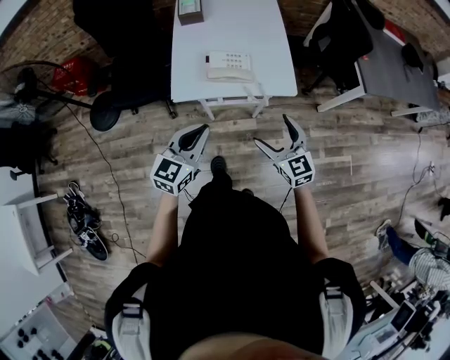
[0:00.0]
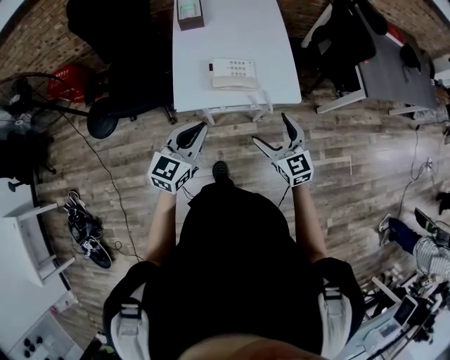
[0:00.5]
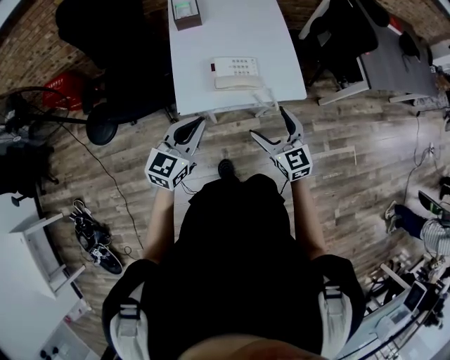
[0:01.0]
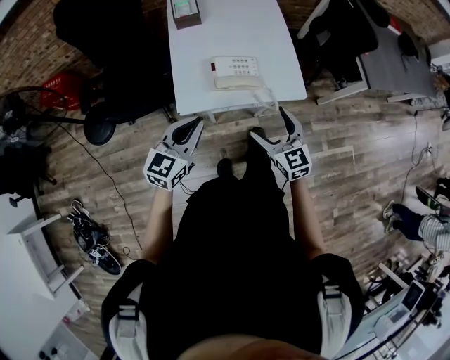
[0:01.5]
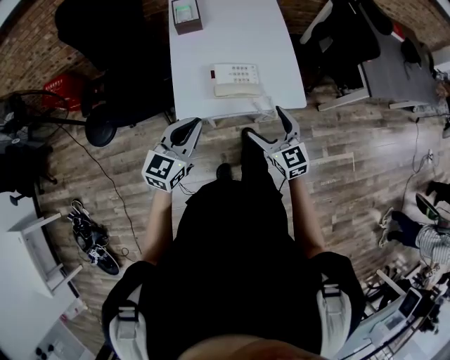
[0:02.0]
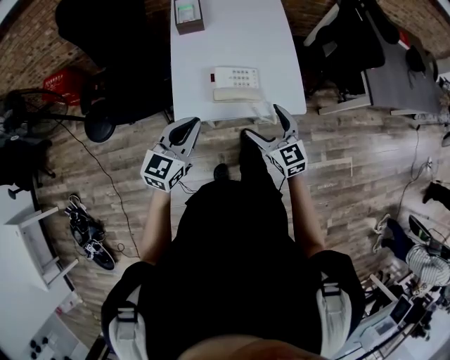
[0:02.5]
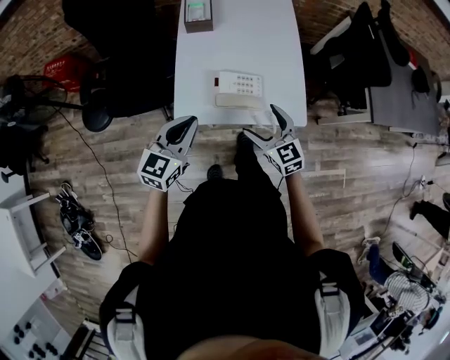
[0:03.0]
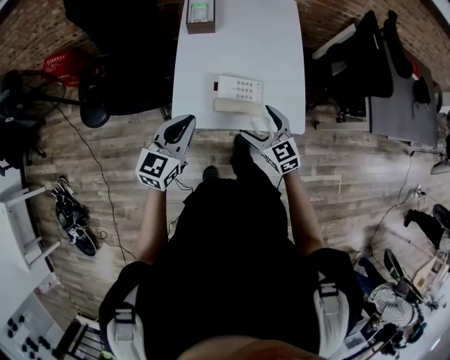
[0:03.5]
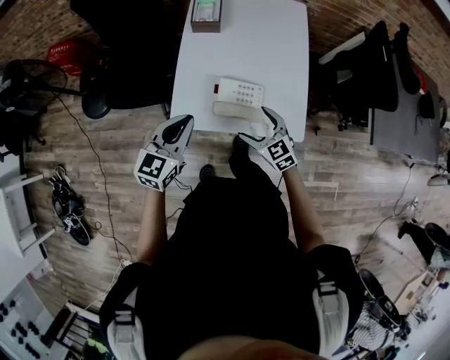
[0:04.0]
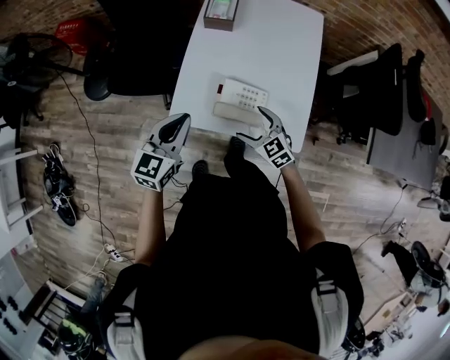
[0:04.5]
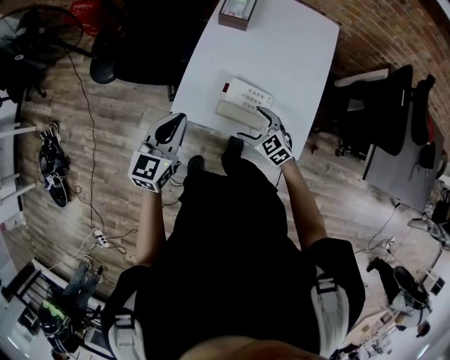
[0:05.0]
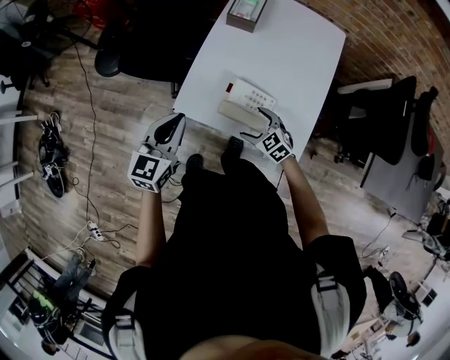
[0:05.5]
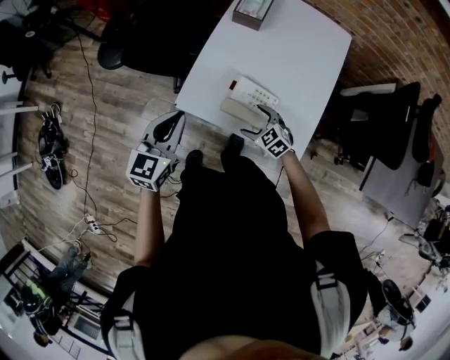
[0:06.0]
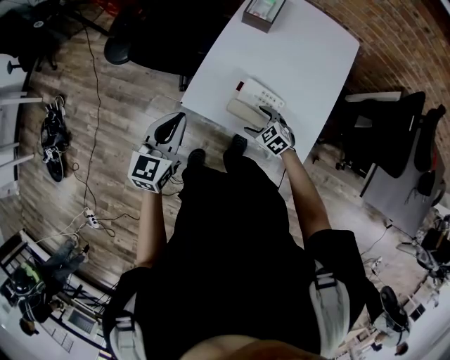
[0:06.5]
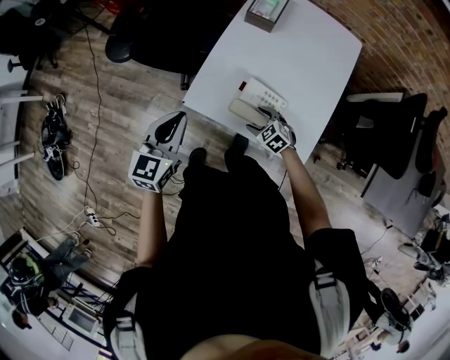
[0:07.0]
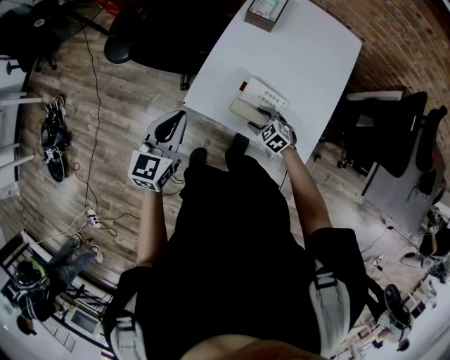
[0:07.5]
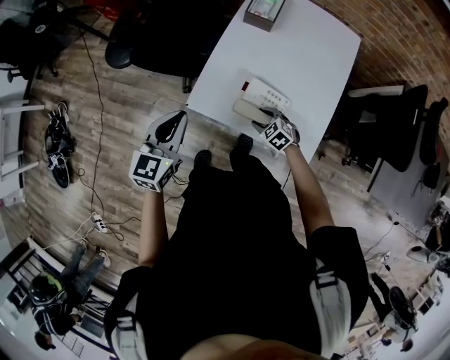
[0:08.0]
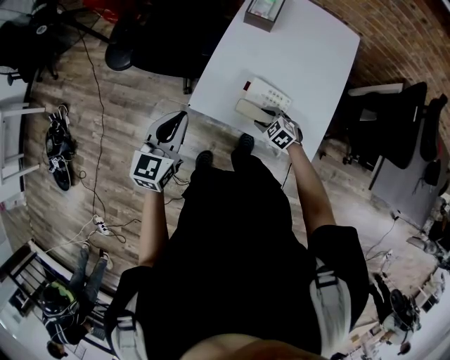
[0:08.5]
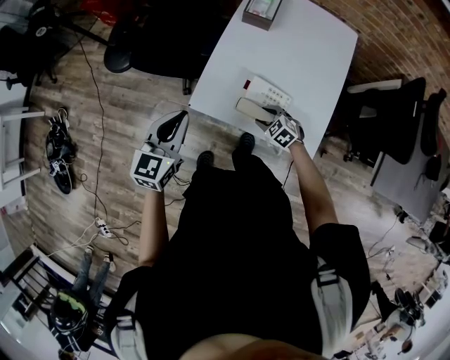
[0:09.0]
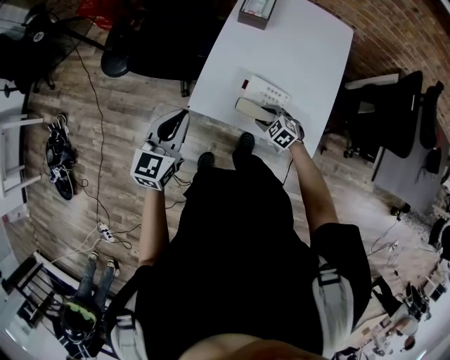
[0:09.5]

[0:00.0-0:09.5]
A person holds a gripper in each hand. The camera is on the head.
0:00.0 to 0:02.0: The grippers both shift forward and to the left by approximately 15 cm.
0:02.0 to 0:04.0: The right gripper is displaced forward and downward by roughly 15 cm, and rotates roughly 30 degrees. Meanwhile the left gripper moves forward, approximately 10 cm.
0:04.0 to 0:05.5: The right gripper travels downward by about 10 cm, and changes its angle by about 30 degrees. The left gripper changes its angle by about 20 degrees.
0:05.5 to 0:07.5: The right gripper goes approximately 5 cm downward, and closes its fingers.
0:07.5 to 0:09.5: The grippers stay close to where they were, moving slightly.

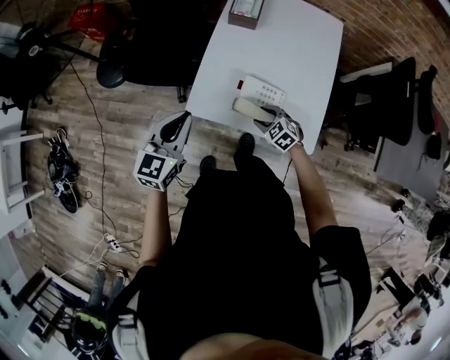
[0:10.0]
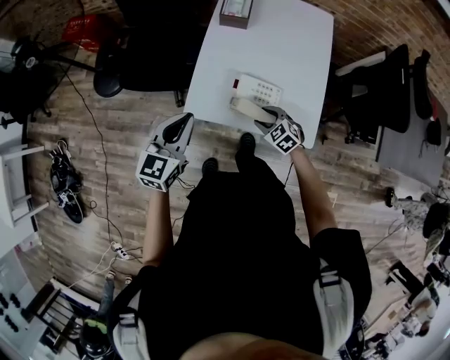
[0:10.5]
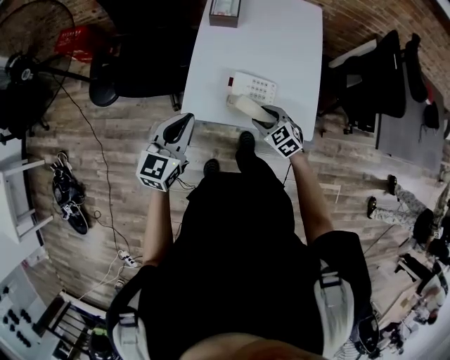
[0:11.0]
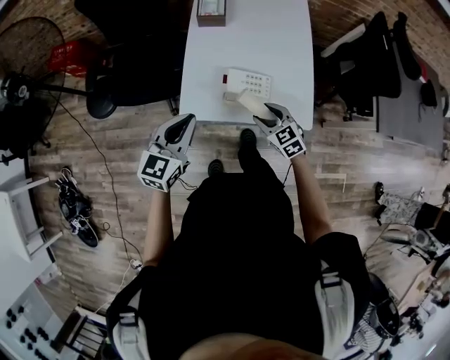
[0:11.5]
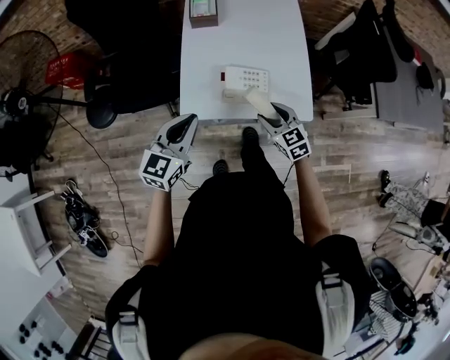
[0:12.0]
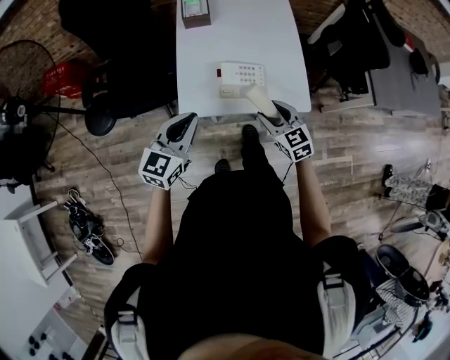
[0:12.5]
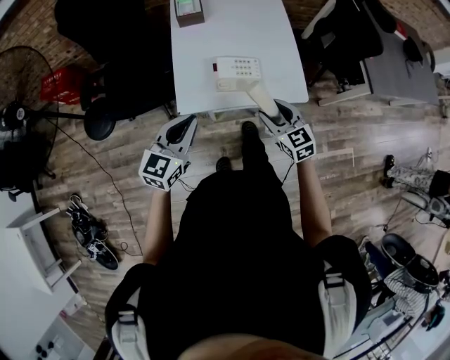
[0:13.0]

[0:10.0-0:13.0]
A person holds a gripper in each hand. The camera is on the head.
0:10.0 to 0:11.5: The right gripper moves upward, some 10 cm, and swivels some 30 degrees.
0:11.5 to 0:13.0: The left gripper shifts some 5 cm backward. The right gripper is displaced backward and upward by about 10 cm.

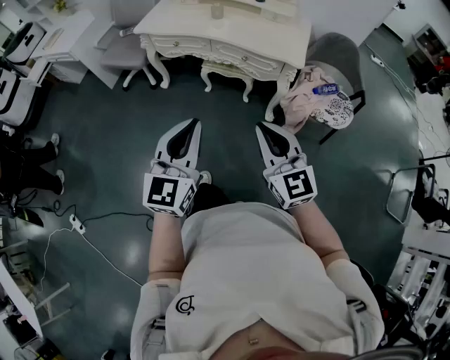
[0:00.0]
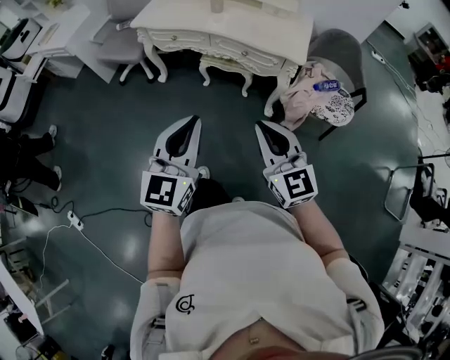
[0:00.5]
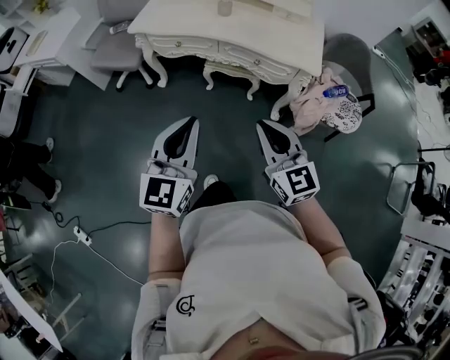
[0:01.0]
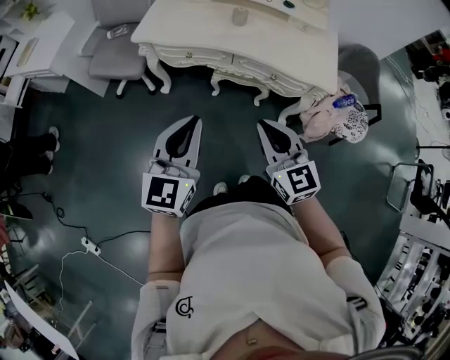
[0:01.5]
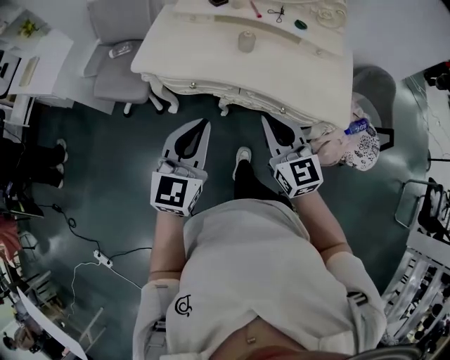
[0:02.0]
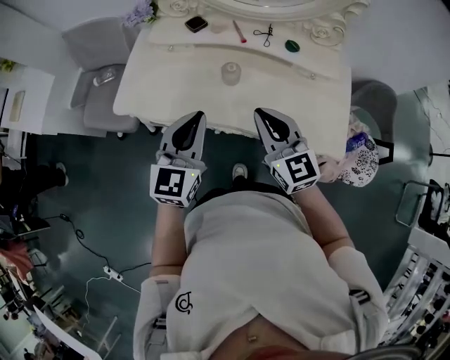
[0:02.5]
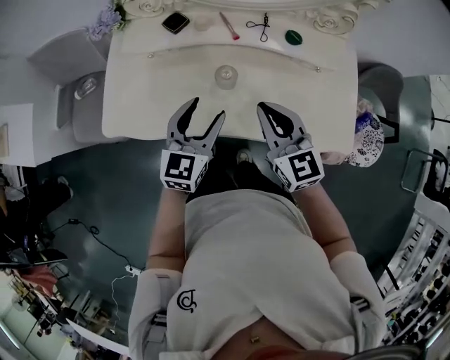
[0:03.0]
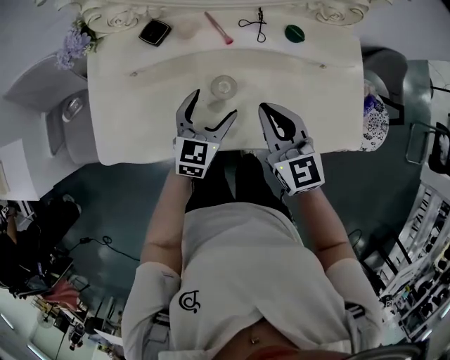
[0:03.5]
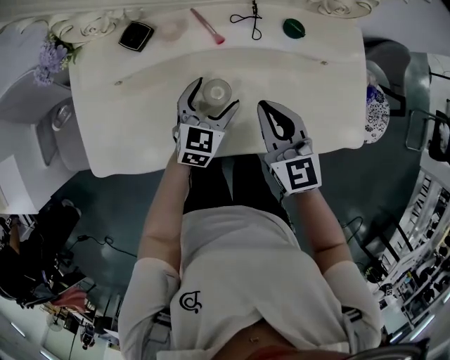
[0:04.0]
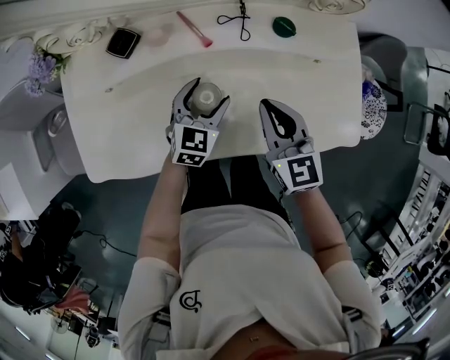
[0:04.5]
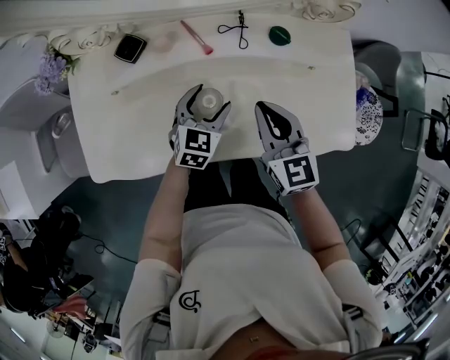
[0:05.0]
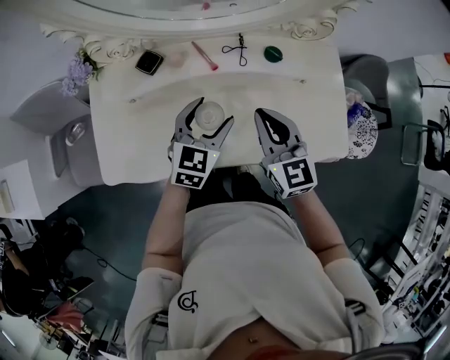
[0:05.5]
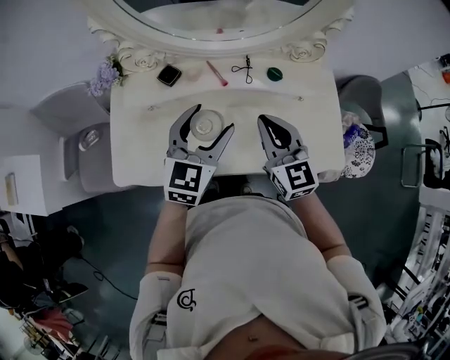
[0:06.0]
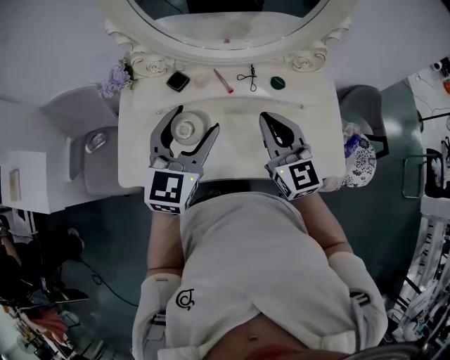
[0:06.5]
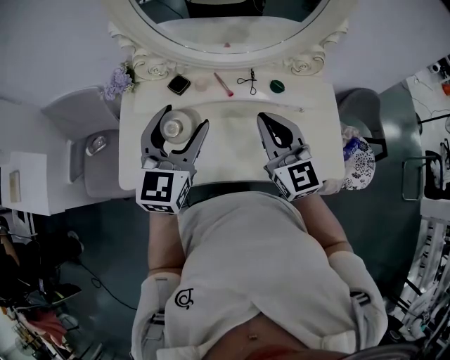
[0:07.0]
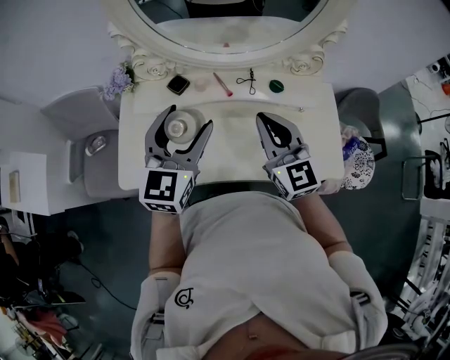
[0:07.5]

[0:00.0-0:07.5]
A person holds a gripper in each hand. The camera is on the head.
0:00.0 to 0:02.0: The two grippers travel together, forward, about 40 cm.
0:02.0 to 0:04.0: The right gripper heads forward, covering about 35 cm, and rotates approximately 30 degrees; the left gripper goes roughly 50 cm forward and downward, changes its angle by approximately 40 degrees, and opens.
0:04.0 to 0:05.5: The right gripper moves upward, about 5 cm, while the left gripper is displaced upward by some 10 cm.
0:05.5 to 0:07.5: The right gripper shifts approximately 10 cm upward. The left gripper is displaced upward and to the left by about 20 cm, and changes its angle by approximately 20 degrees.

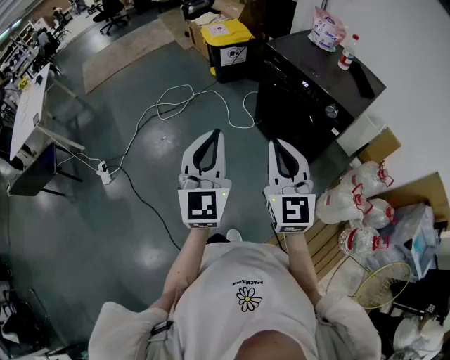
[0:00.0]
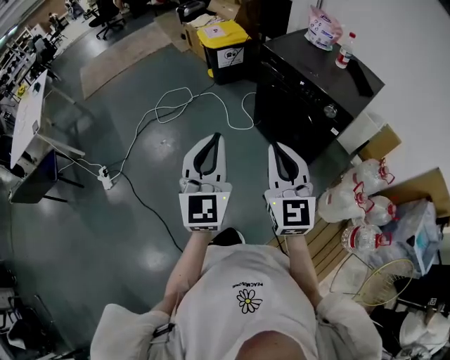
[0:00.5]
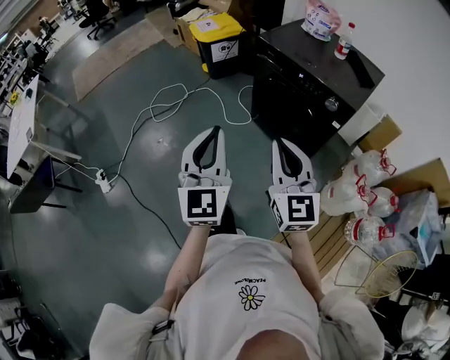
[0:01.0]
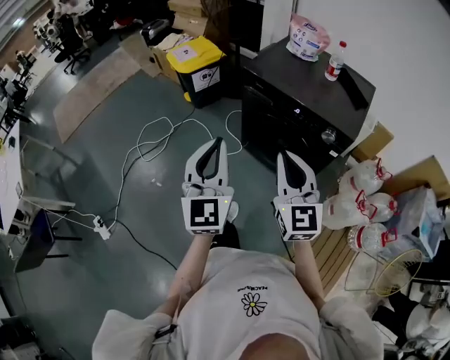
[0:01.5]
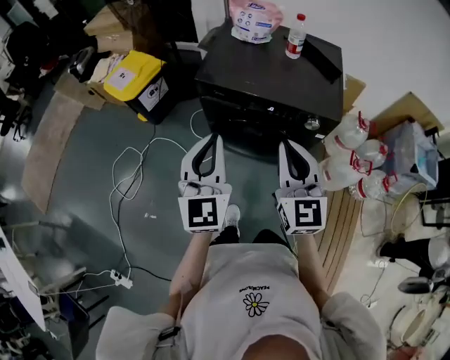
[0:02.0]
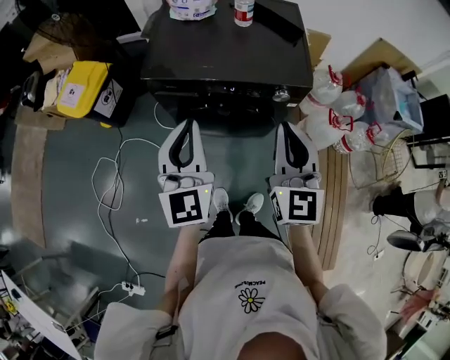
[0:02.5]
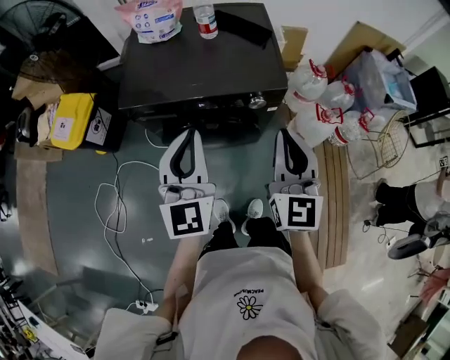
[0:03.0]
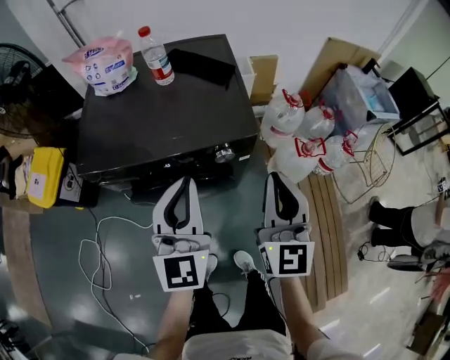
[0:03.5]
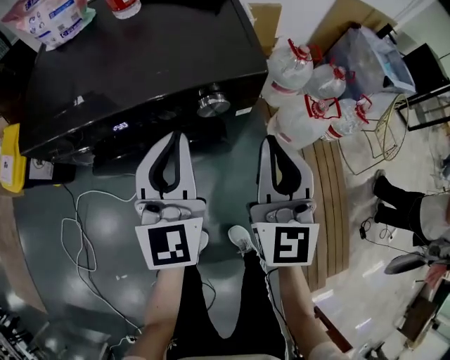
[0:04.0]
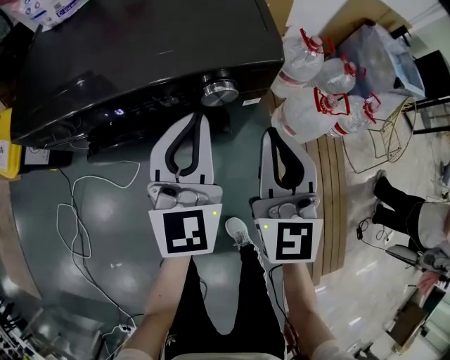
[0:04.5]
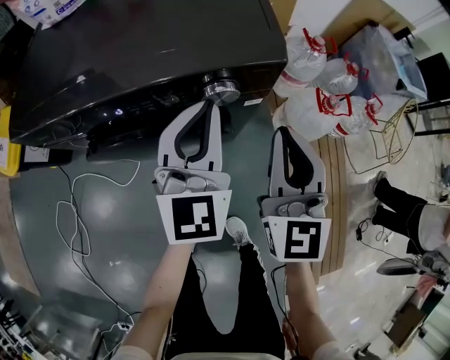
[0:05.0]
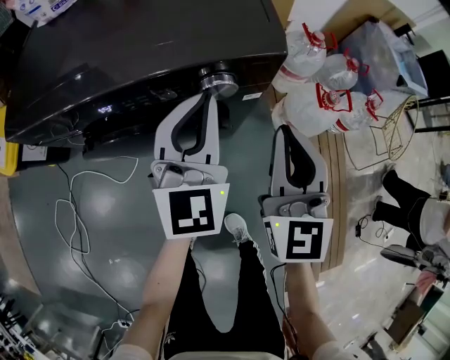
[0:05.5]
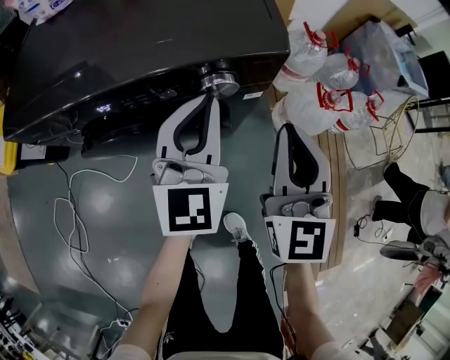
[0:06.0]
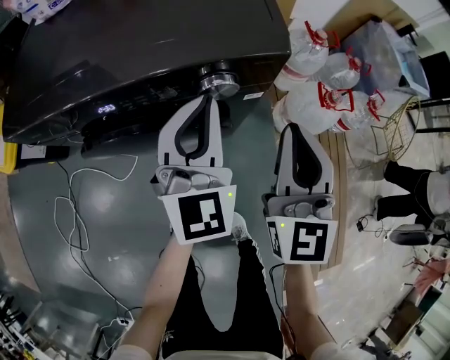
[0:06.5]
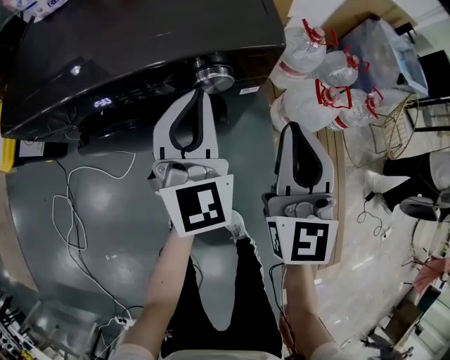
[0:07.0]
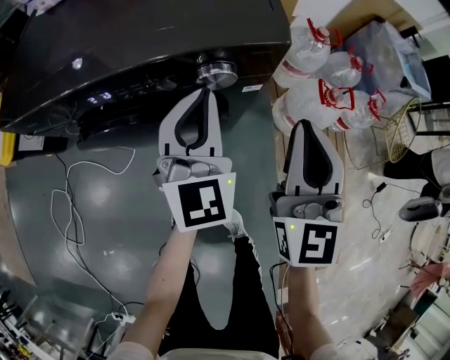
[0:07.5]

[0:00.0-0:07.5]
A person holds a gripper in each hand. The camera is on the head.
0:00.0 to 0:02.0: The left gripper ends up roughly 35 cm from where it was, and changes its angle by about 30 degrees; the right gripper changes place by roughly 30 cm, and changes its angle by roughly 40 degrees.
0:02.0 to 0:04.0: The right gripper ends up approximately 30 cm from where it was, and swivels about 30 degrees. The left gripper ends up roughly 40 cm from where it was, and rotates some 20 degrees.
0:04.0 to 0:05.5: The left gripper changes place by roughly 5 cm.
0:05.5 to 0:07.5: The grippers move only a little.
